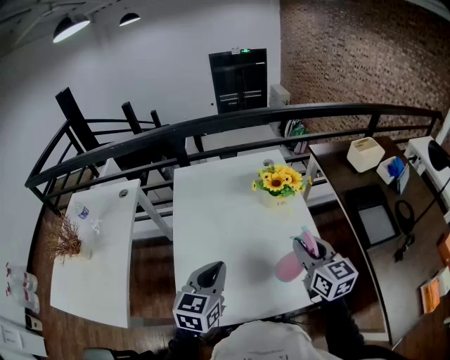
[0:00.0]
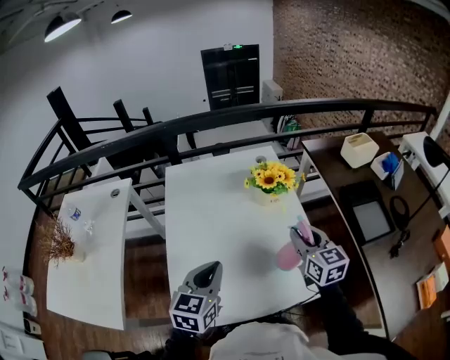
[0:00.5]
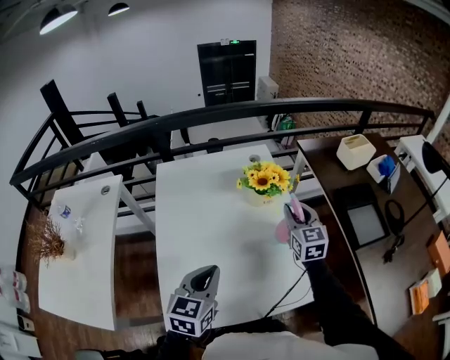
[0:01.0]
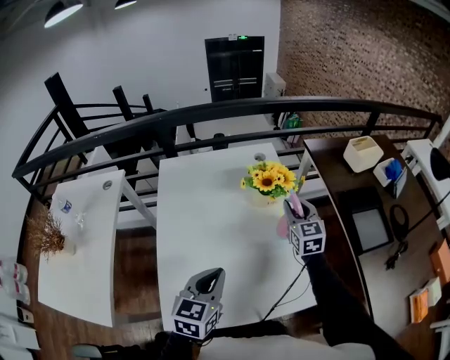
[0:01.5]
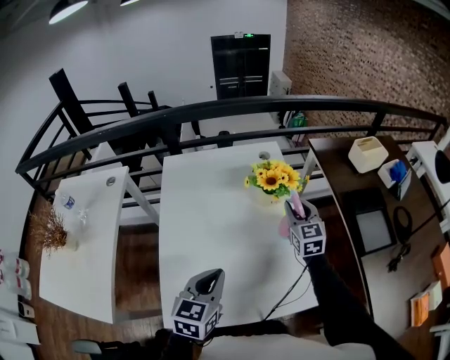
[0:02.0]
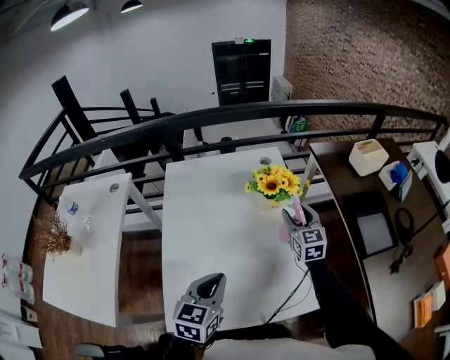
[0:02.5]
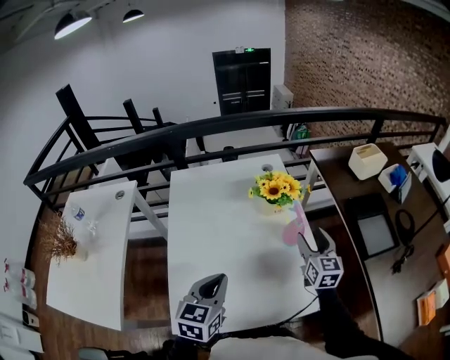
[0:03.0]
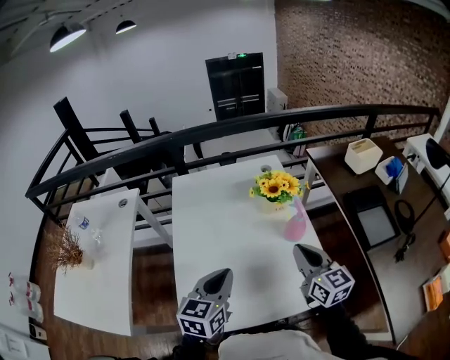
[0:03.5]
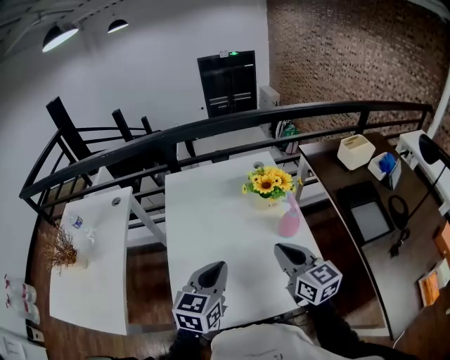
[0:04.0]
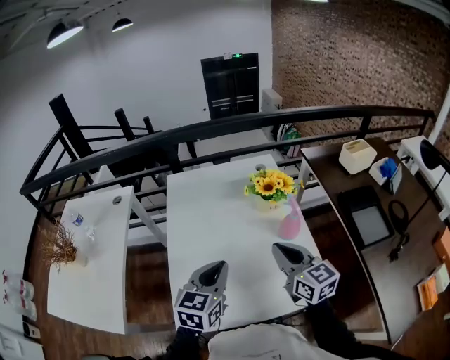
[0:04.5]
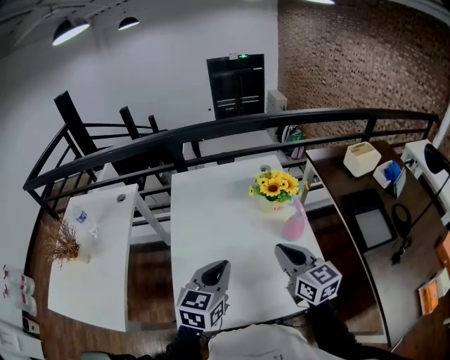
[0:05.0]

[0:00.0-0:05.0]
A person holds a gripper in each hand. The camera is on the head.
0:00.0 to 0:02.5: The left gripper changes place by approximately 5 cm. The right gripper goes approximately 20 cm forward, and opens up.
0:02.5 to 0:05.0: The right gripper shifts approximately 25 cm backward, to the left and upward, changes its angle by some 20 degrees, and closes up. The left gripper heads upward, covering about 5 cm.

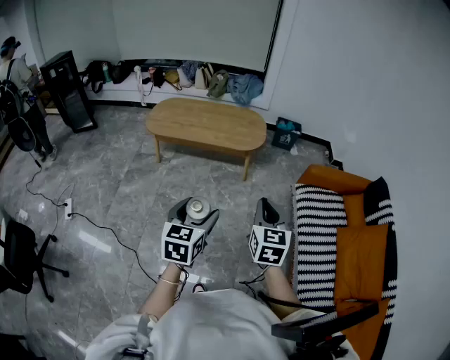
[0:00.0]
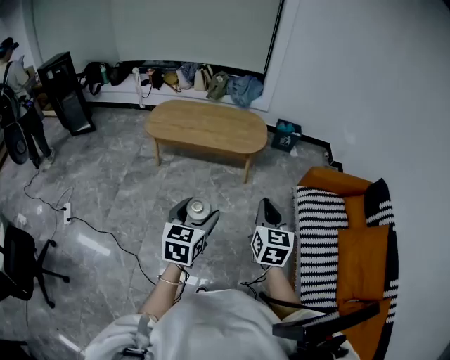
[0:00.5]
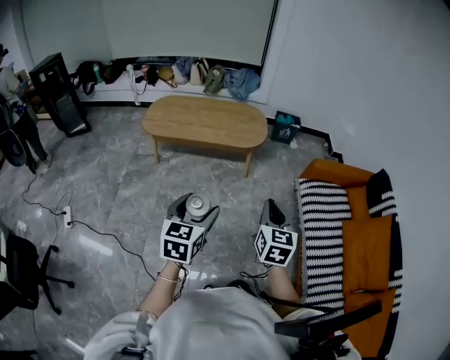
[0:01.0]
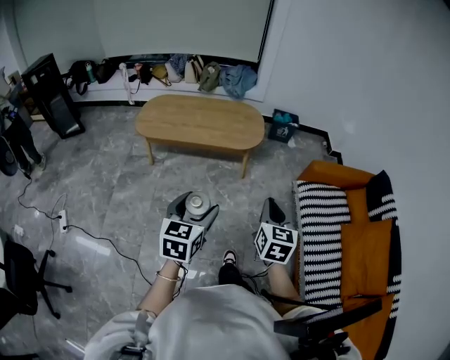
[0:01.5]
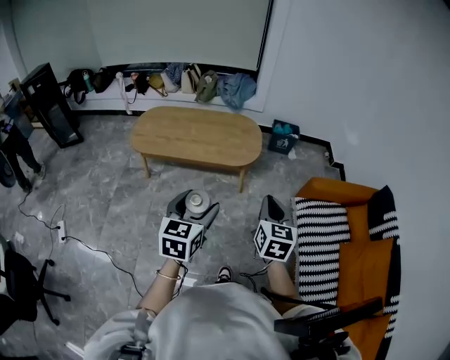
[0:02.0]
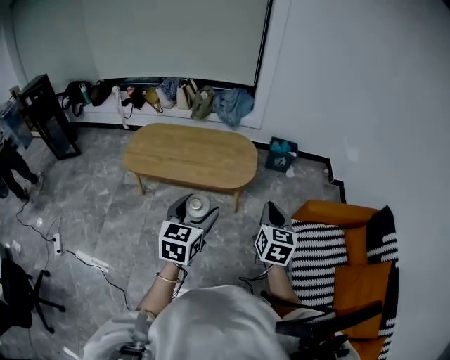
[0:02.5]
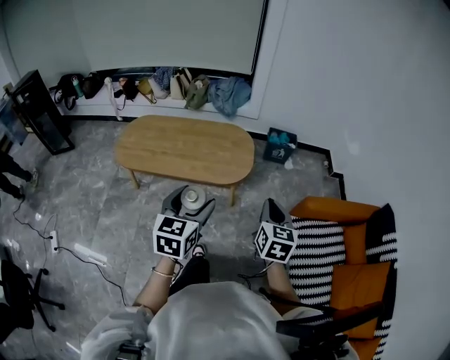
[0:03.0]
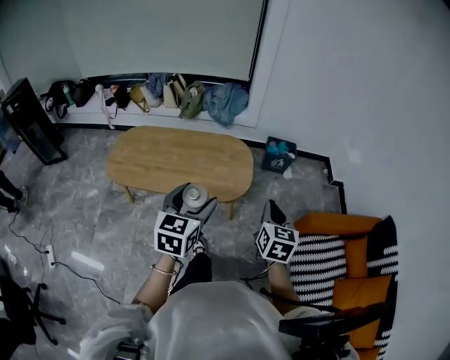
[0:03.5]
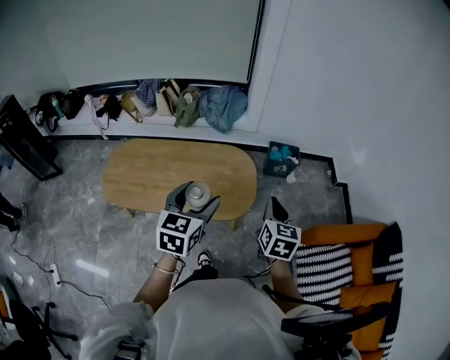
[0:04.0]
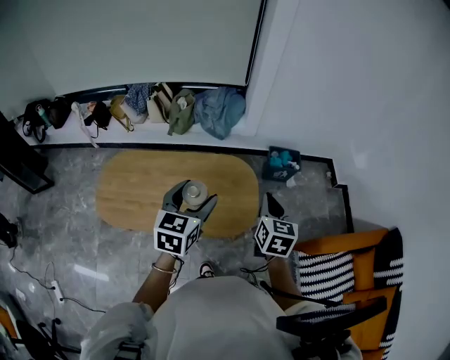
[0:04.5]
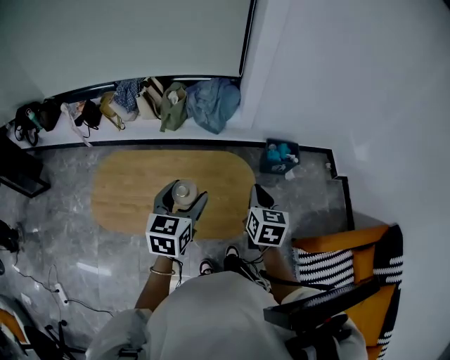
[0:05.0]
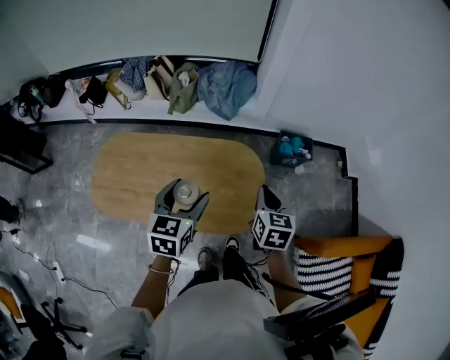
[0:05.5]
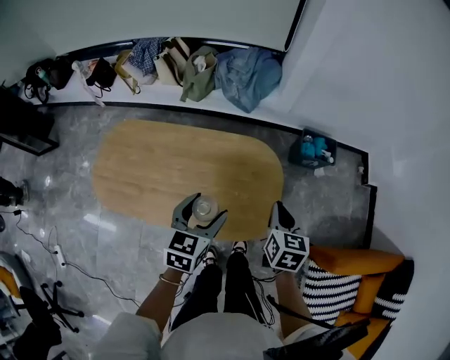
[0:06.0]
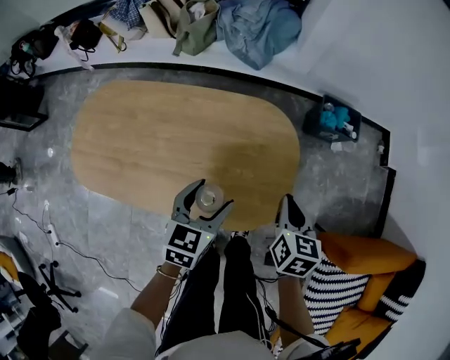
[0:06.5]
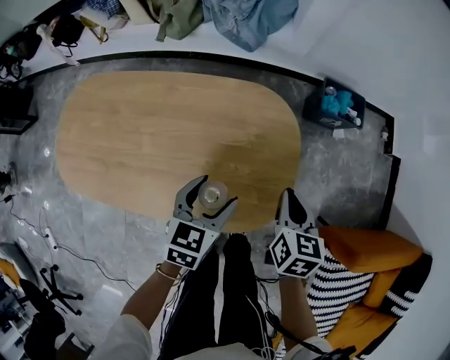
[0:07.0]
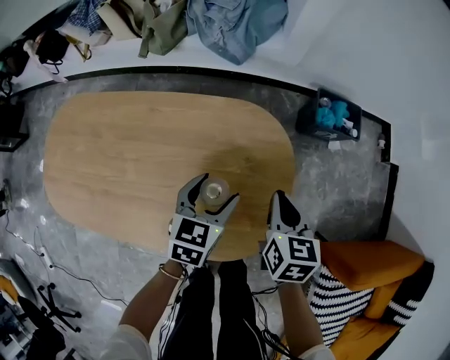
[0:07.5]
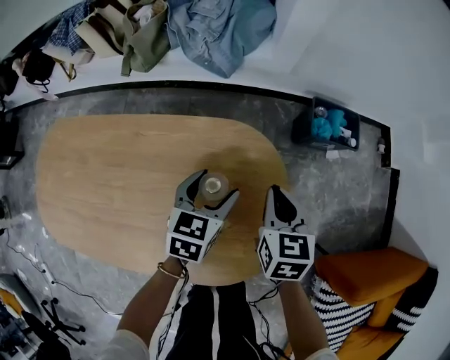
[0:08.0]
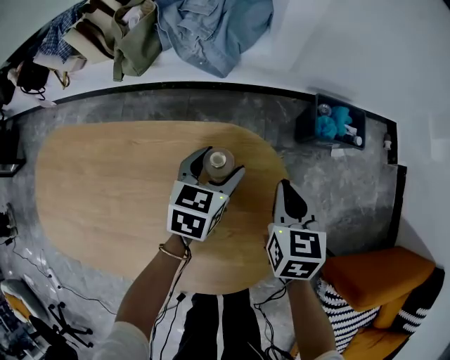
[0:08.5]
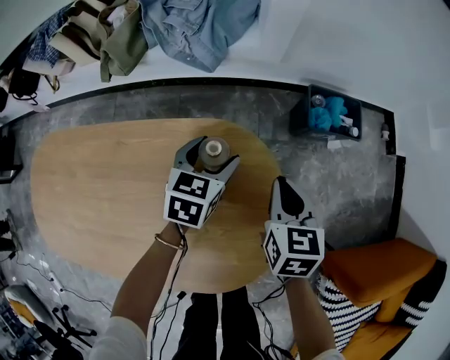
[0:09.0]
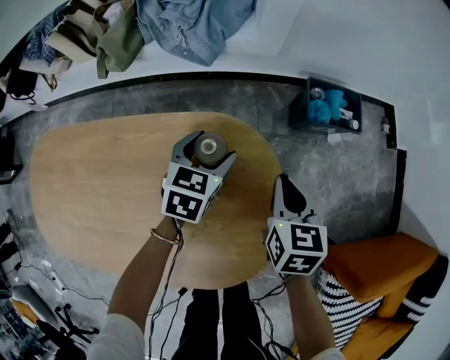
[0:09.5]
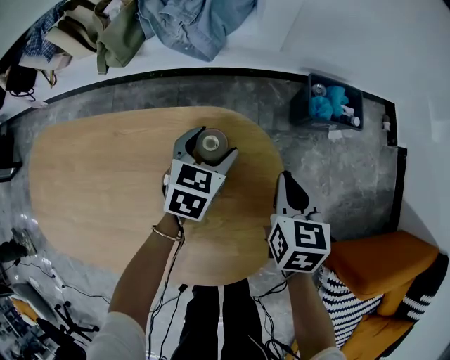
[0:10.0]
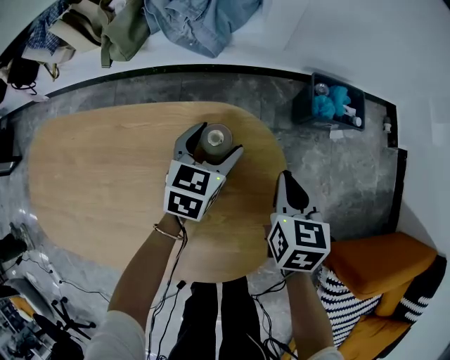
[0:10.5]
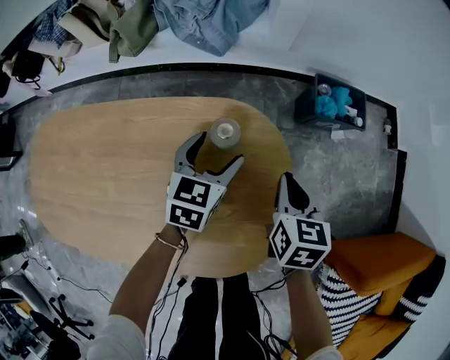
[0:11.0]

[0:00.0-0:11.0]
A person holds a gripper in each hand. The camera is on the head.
0:00.0 to 0:02.0: Both grippers travel together forward, about 20 cm.
0:02.0 to 0:03.5: Both grippers move forward, some 25 cm.
0:03.5 to 0:05.5: Both grippers travel together forward, about 35 cm.
0:05.5 to 0:07.5: Both grippers travel together downward, approximately 30 cm.
0:07.5 to 0:09.0: The left gripper moves forward, some 20 cm. The right gripper goes approximately 15 cm forward and downward.
0:09.0 to 0:11.0: The grippers make only small movements.

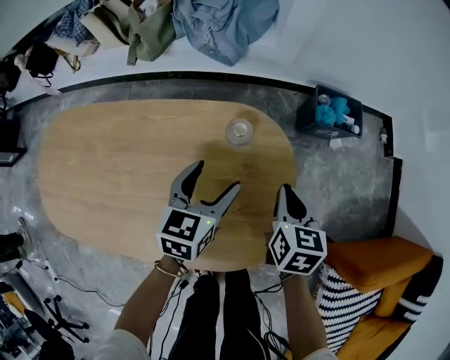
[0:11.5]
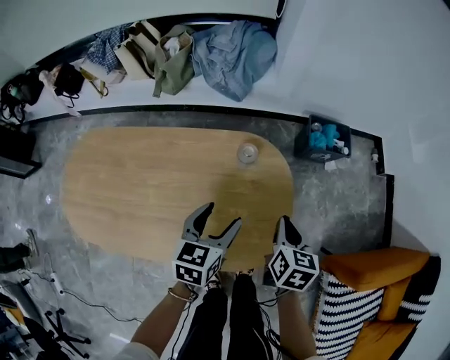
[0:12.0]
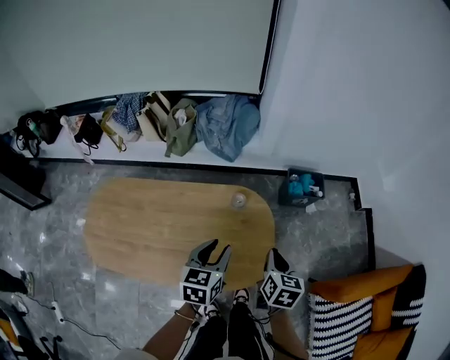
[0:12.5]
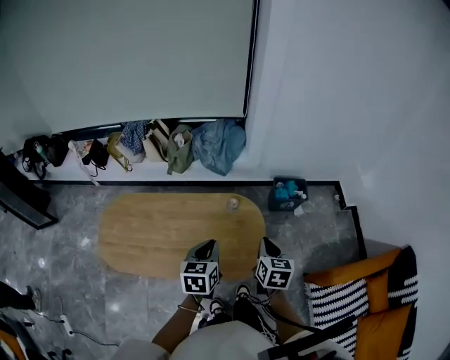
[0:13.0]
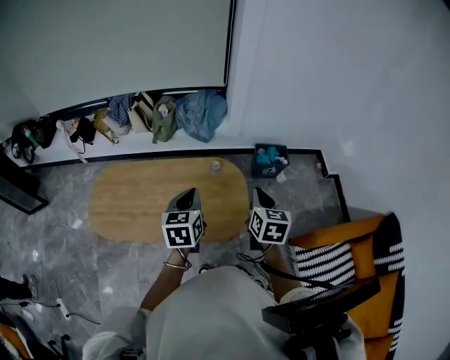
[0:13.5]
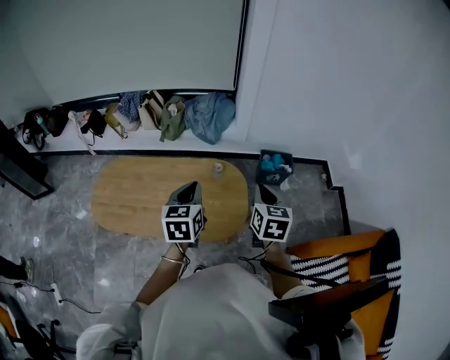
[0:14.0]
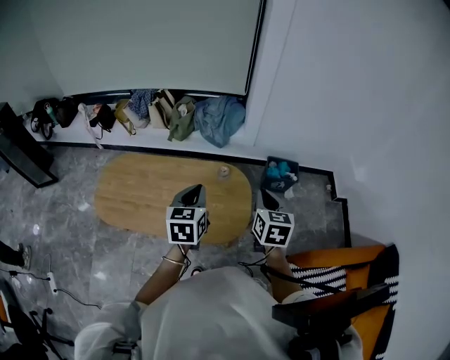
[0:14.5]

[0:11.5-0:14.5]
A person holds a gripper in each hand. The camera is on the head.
0:11.5 to 0:13.0: The two grippers go some 35 cm upward and backward. The left gripper closes up.
0:13.0 to 0:14.5: The grippers both shift upward by some 10 cm.

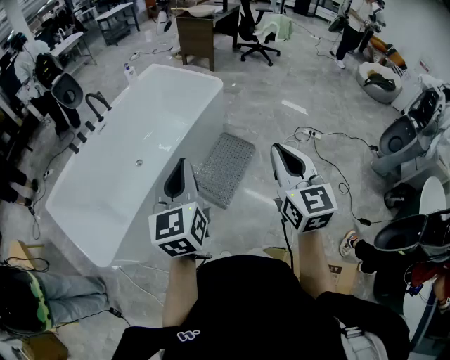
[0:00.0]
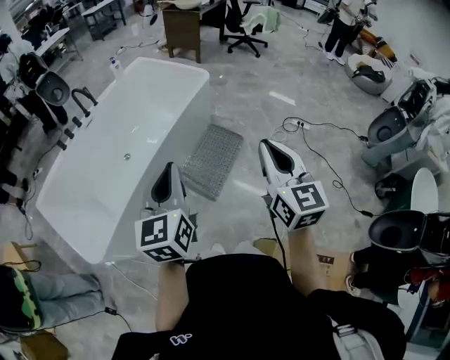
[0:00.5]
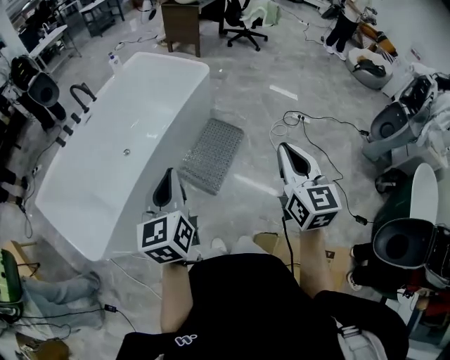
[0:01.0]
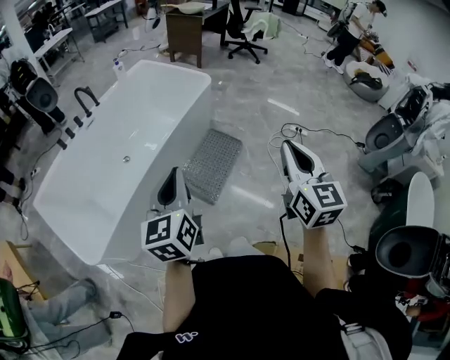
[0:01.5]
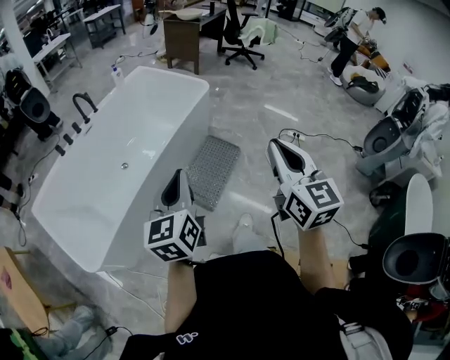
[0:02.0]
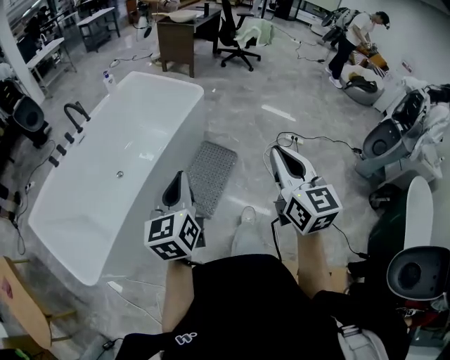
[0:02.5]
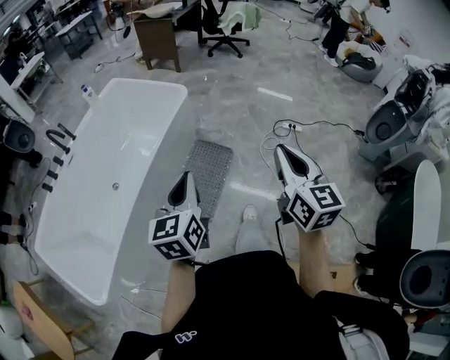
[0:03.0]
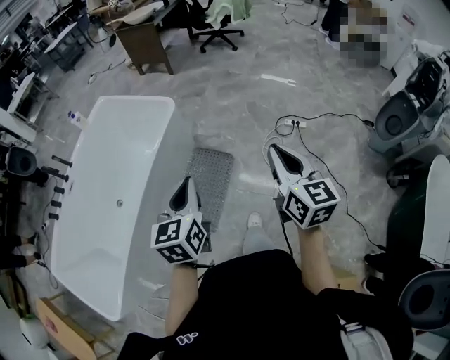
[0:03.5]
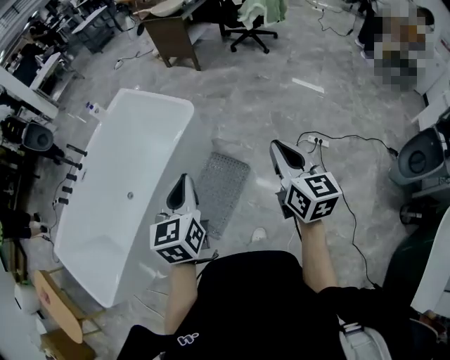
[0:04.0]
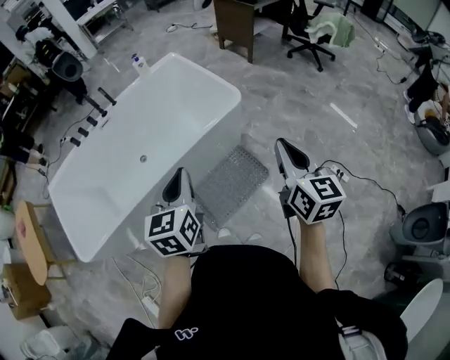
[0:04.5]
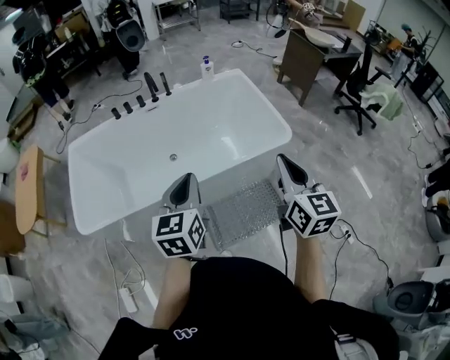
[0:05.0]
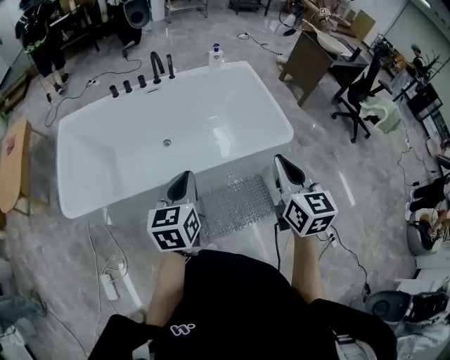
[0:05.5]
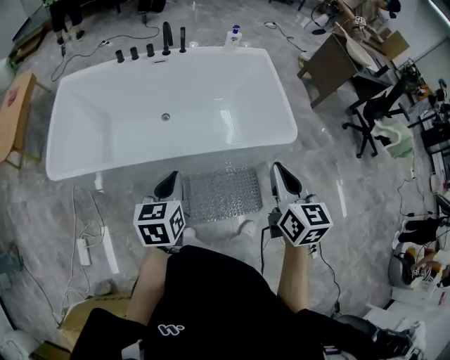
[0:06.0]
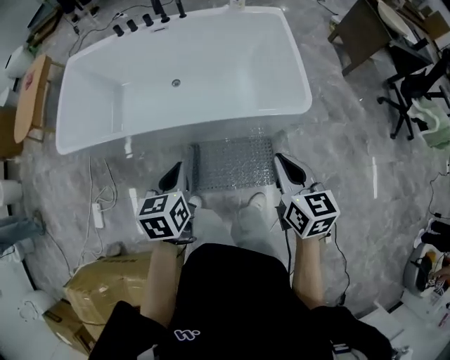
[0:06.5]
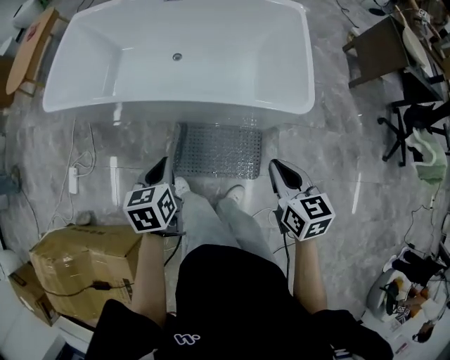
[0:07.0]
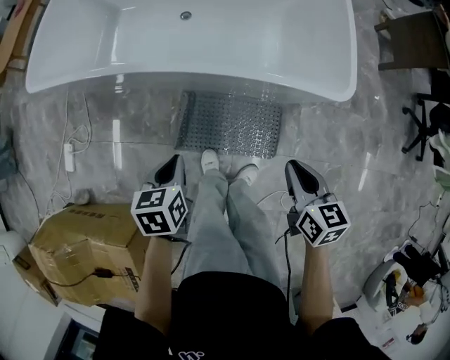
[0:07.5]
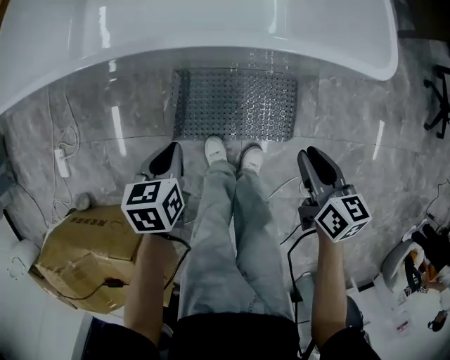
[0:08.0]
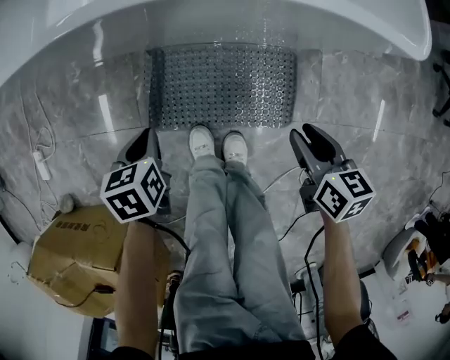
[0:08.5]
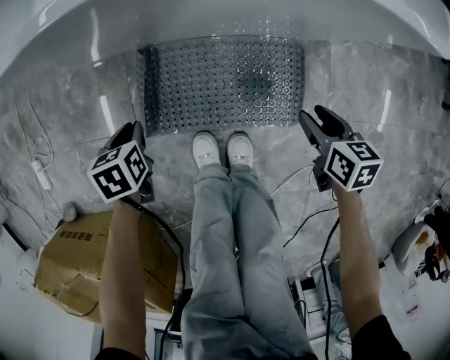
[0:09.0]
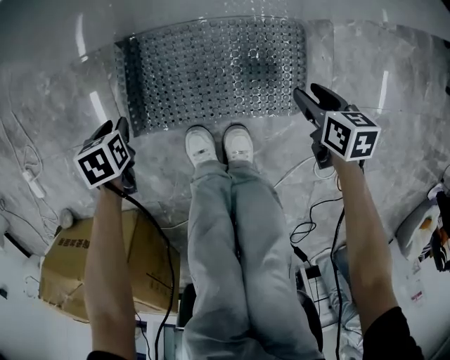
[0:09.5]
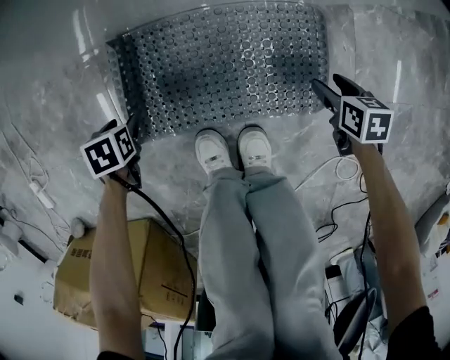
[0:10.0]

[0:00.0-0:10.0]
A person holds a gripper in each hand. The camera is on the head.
0:00.0 to 0:02.0: There are only small adjustments of the grippers.
0:02.0 to 0:04.0: The pair of grippers is taken forward and to the right, approximately 50 cm.
0:04.0 to 0:06.0: The right gripper ends up roughly 35 cm from where it was, and changes its angle by about 50 degrees, while the left gripper moves approximately 30 cm, and turns by approximately 50 degrees.
0:06.0 to 0:08.0: Both grippers travel together downward, about 40 cm. The left gripper turns by about 30 degrees. The right gripper rotates some 30 degrees.
0:08.0 to 0:10.0: Both grippers move downward, roughly 40 cm. The left gripper turns by approximately 30 degrees, and opens its fingers, while the right gripper changes its angle by some 30 degrees, and opens.
